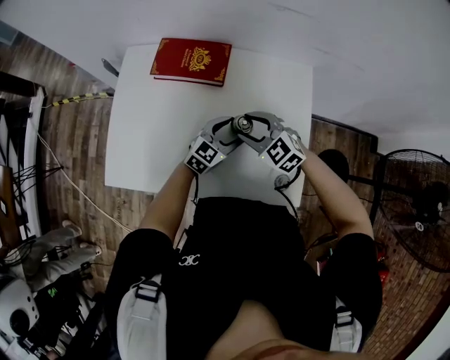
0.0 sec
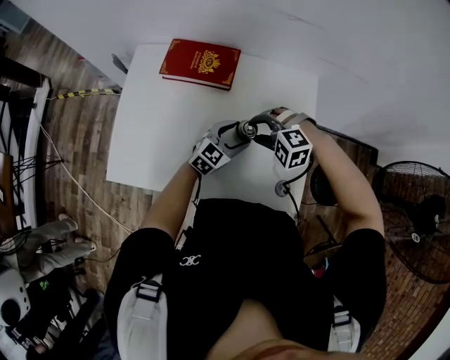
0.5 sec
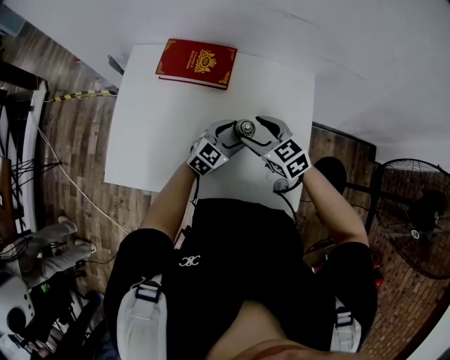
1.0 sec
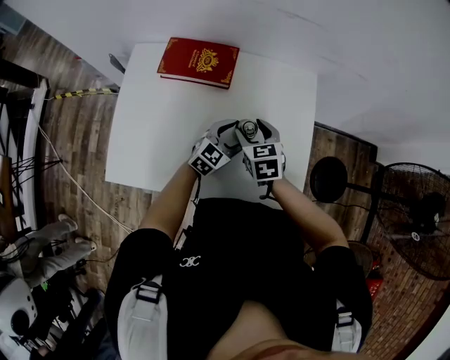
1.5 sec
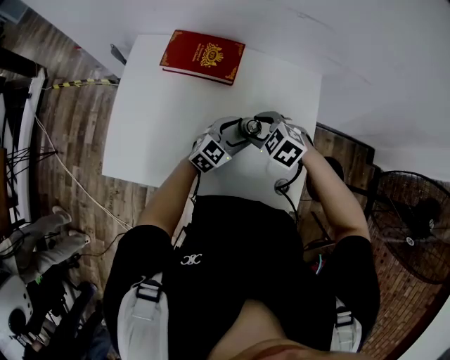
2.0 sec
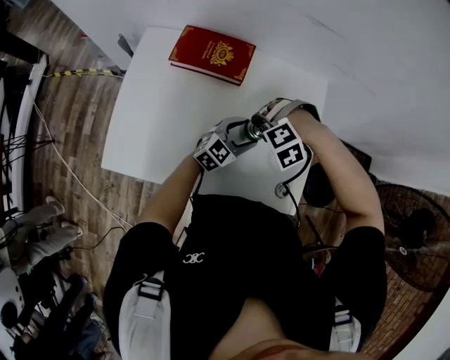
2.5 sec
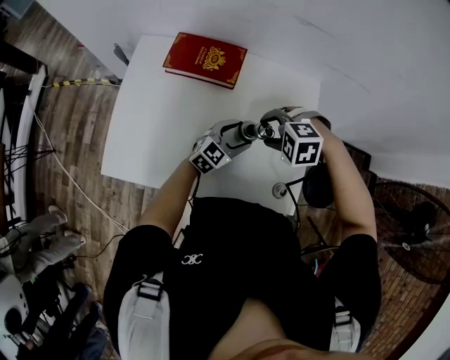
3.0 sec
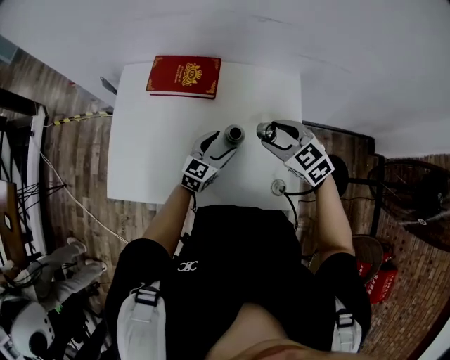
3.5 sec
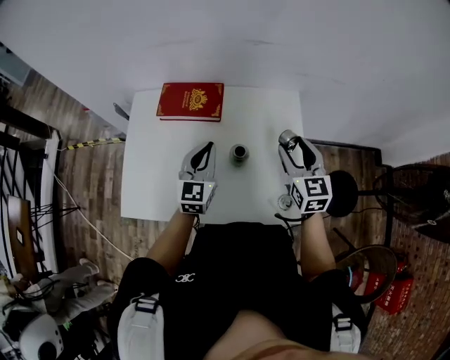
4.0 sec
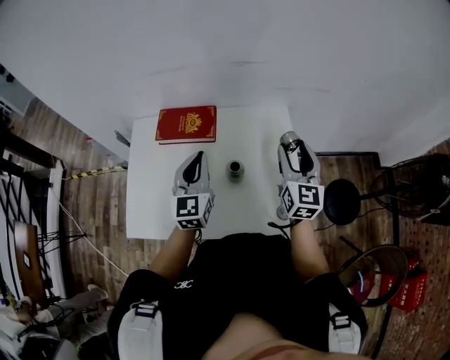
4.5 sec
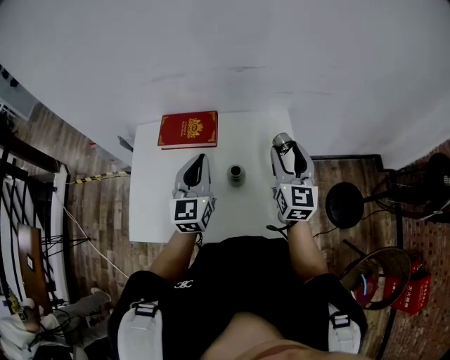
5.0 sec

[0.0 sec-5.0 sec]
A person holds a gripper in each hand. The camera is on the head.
0.0 sec to 2.5 sec: The right gripper tilts its fingers some 50 degrees downward.
2.5 sec to 5.0 sec: The grippers both shift upward by about 25 cm. The left gripper swivels roughly 40 degrees, and closes up; the right gripper tilts its fingers some 80 degrees upward.

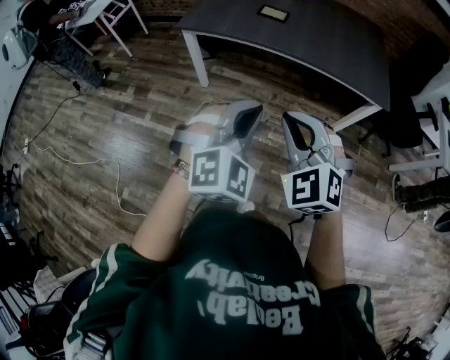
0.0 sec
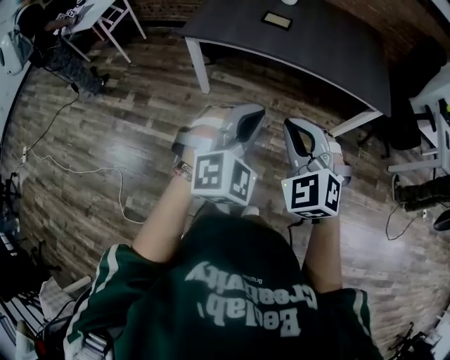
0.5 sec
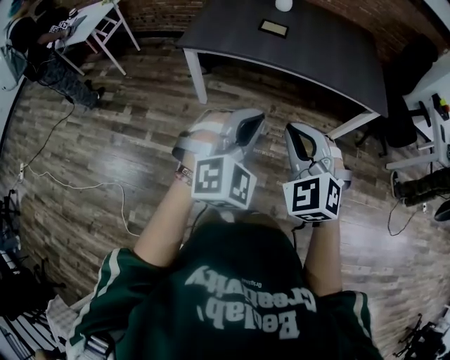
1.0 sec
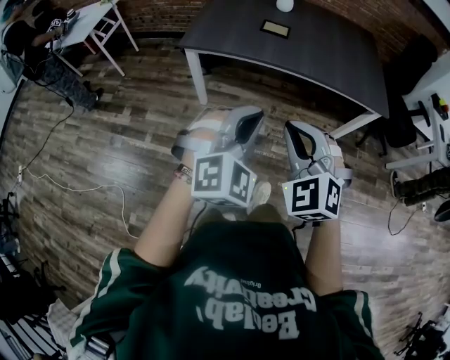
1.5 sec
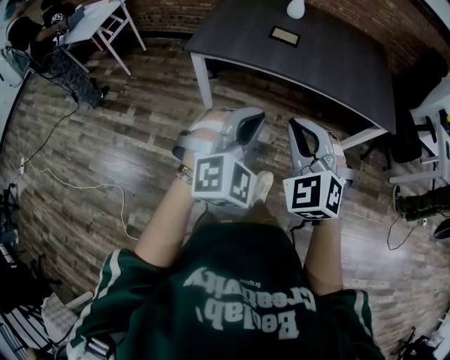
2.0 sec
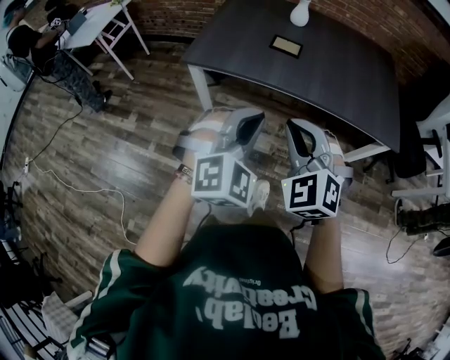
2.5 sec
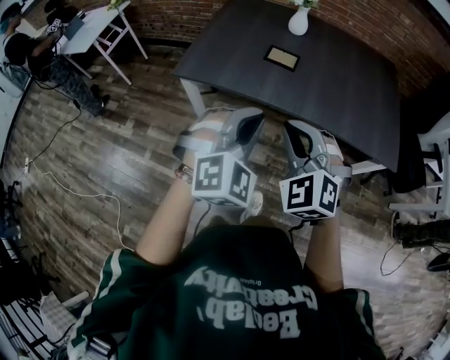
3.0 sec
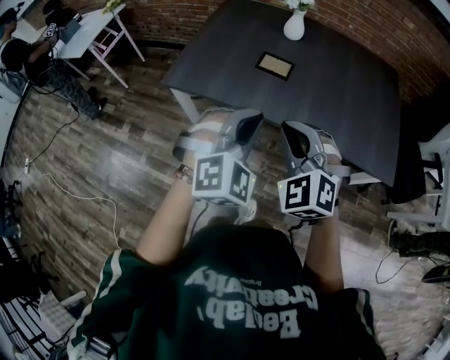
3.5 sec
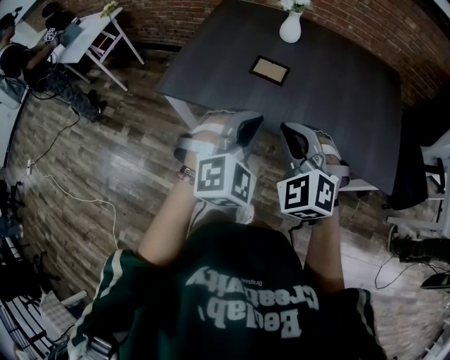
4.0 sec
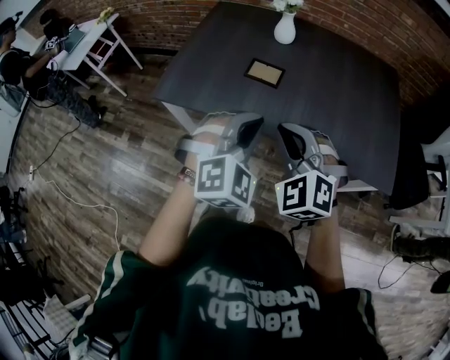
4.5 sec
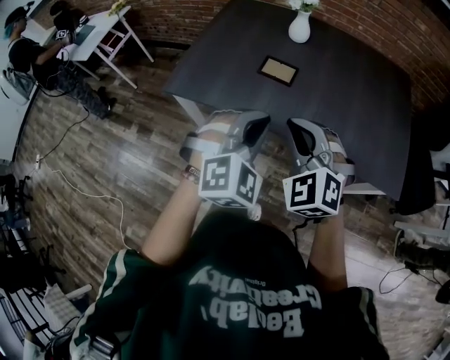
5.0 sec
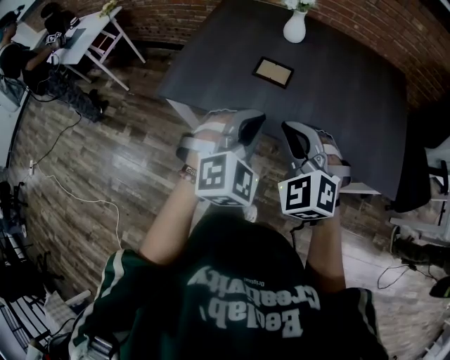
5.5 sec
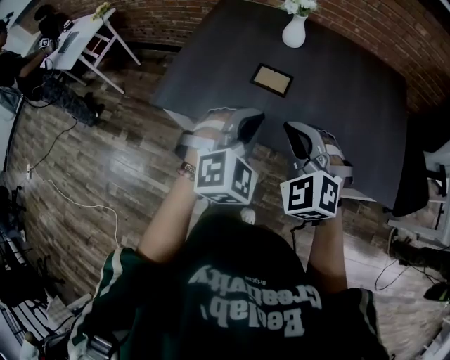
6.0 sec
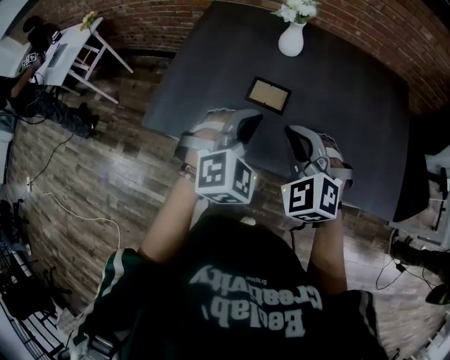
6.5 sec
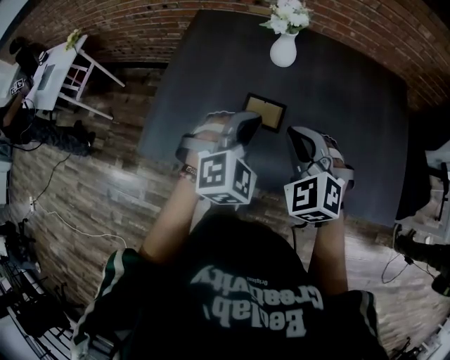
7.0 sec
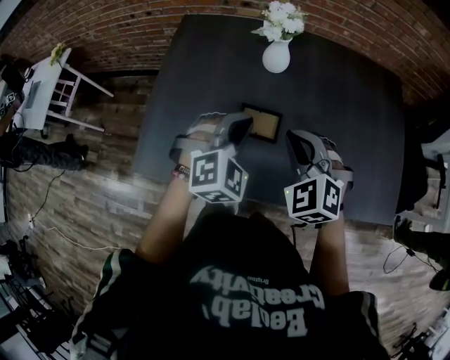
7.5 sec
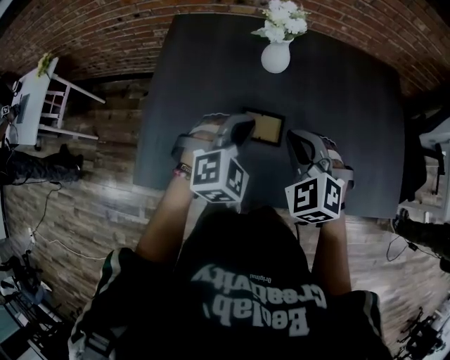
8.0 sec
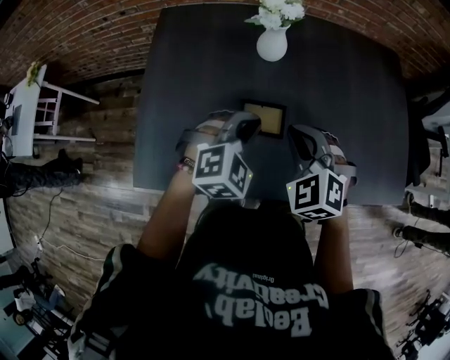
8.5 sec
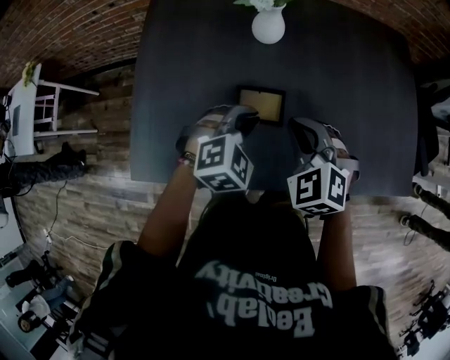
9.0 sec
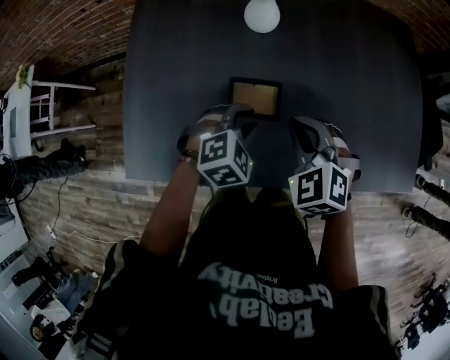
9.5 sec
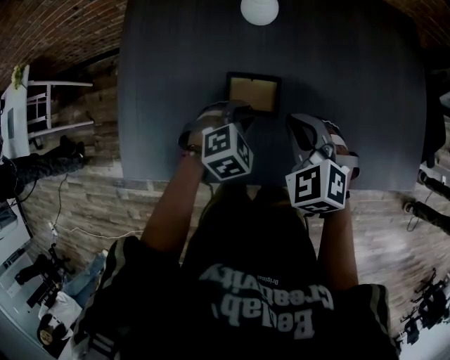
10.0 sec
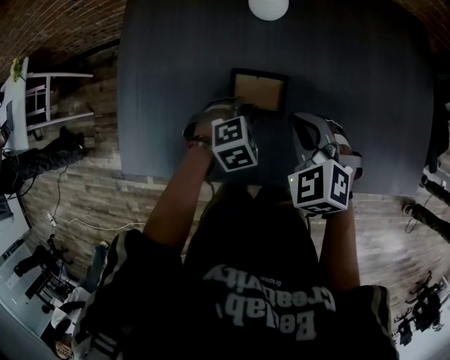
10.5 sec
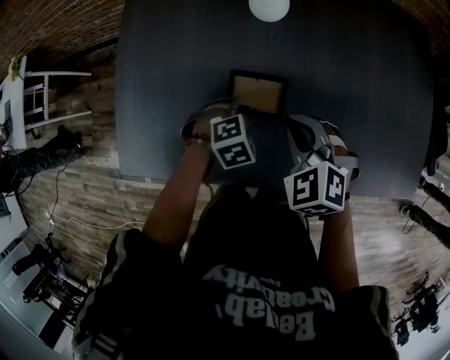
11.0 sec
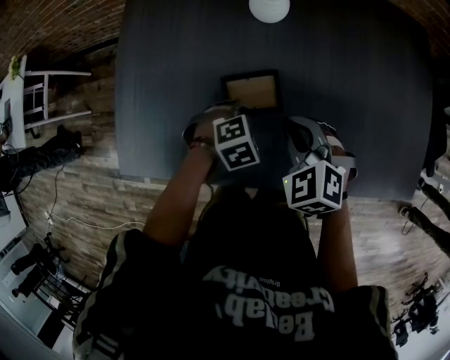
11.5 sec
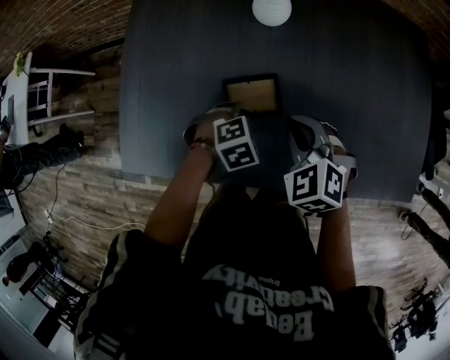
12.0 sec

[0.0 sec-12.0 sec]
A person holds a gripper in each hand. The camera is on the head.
0.0 sec to 2.0 sec: Both grippers travel together to the left and forward, roughly 15 cm.
2.0 sec to 4.0 sec: The two grippers go some 35 cm forward and to the right.
4.0 sec to 6.0 sec: The grippers both shift forward by roughly 10 cm.
6.0 sec to 8.0 sec: The two grippers go some 30 cm forward.
8.0 sec to 10.0 sec: The right gripper is displaced downward by some 10 cm; the left gripper heads downward, covering approximately 20 cm, turns by about 30 degrees, and opens its fingers.

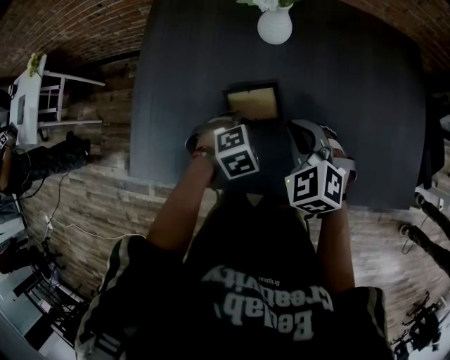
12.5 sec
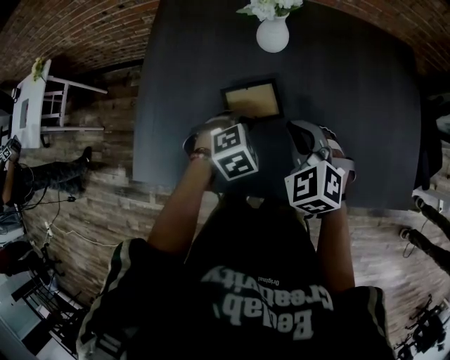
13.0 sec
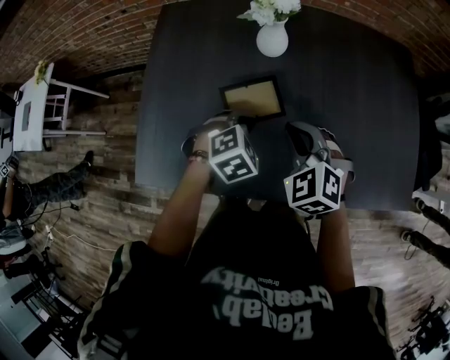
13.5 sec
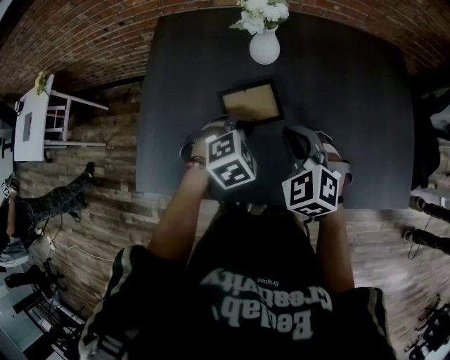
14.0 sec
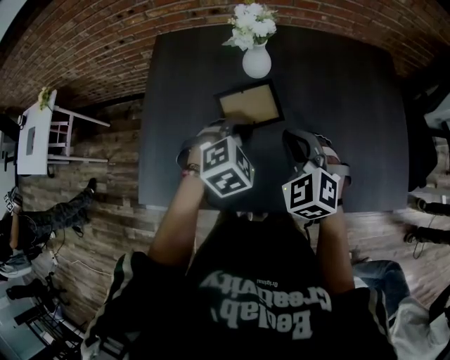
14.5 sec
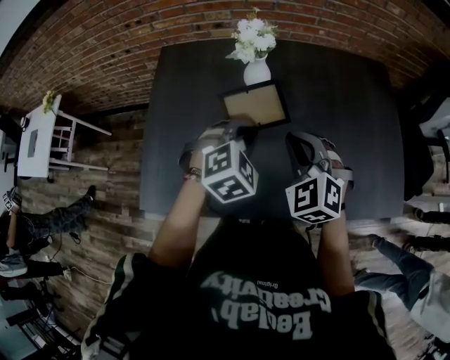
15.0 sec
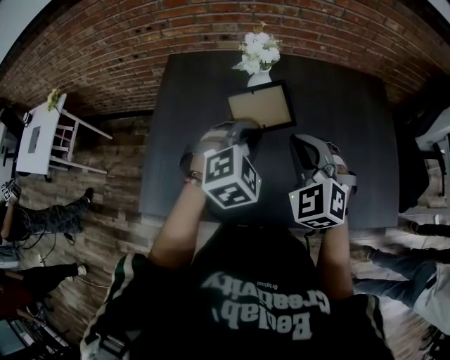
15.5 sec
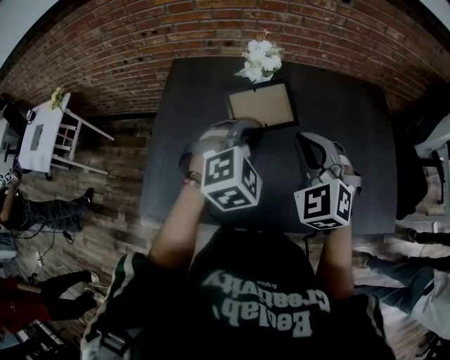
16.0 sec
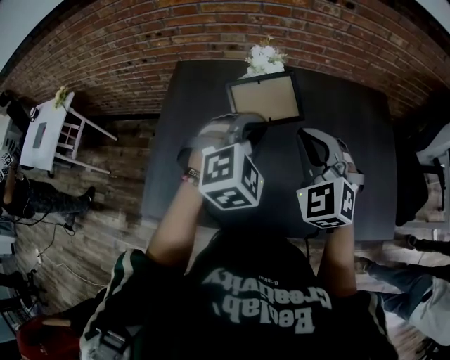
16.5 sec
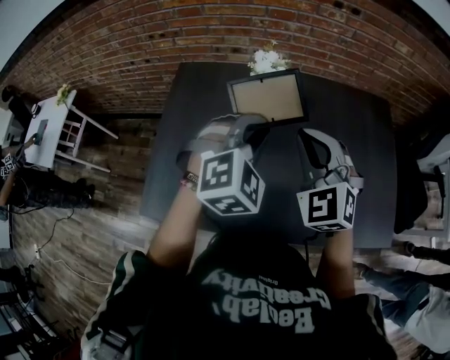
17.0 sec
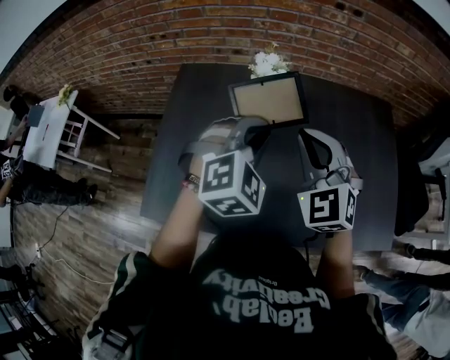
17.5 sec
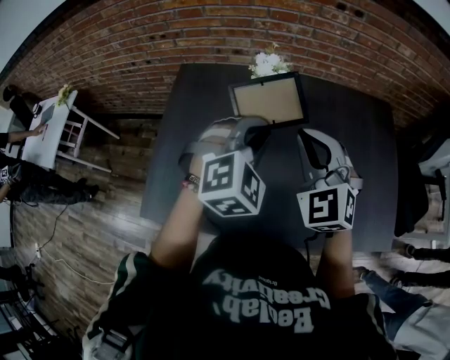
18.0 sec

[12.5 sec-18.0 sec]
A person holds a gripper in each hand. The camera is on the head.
12.5 sec to 14.5 sec: The left gripper moves upward, some 15 cm. Meanwhile the right gripper heads upward, covering about 10 cm.
14.5 sec to 16.0 sec: Both grippers move upward, roughly 15 cm.
16.0 sec to 18.0 sec: The right gripper moves roughly 5 cm. The left gripper moves approximately 5 cm.

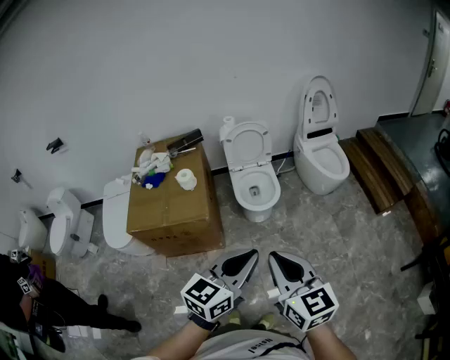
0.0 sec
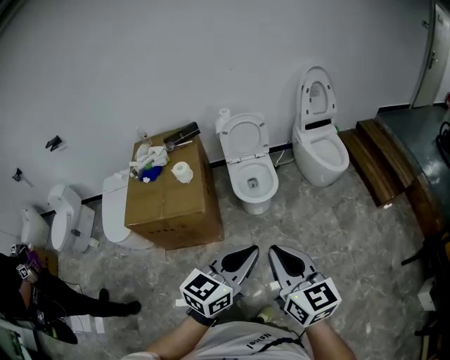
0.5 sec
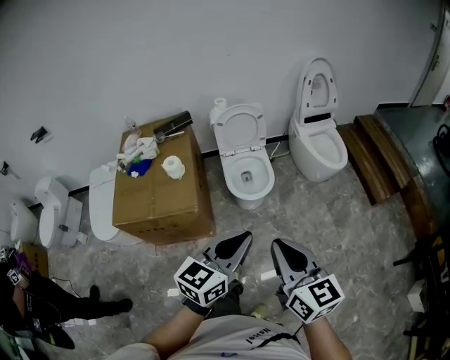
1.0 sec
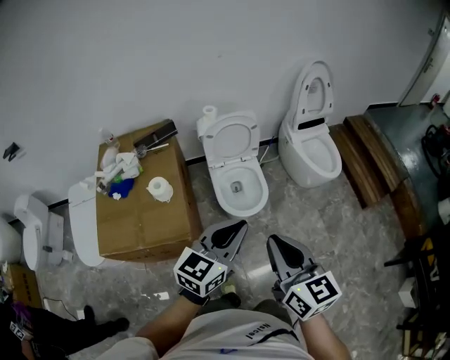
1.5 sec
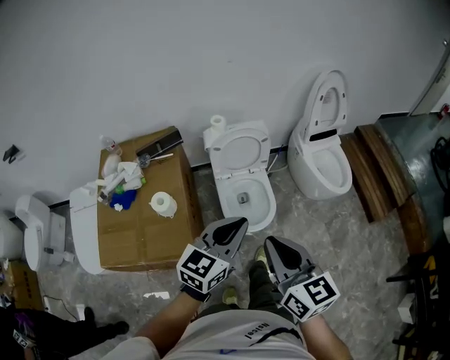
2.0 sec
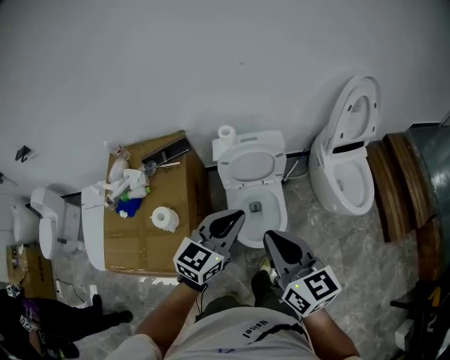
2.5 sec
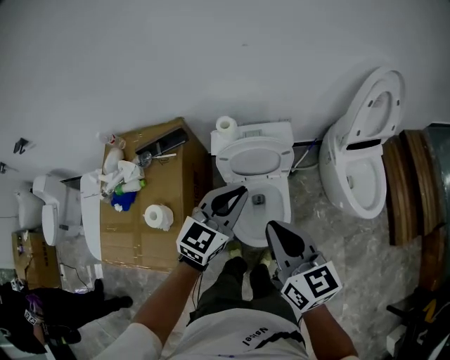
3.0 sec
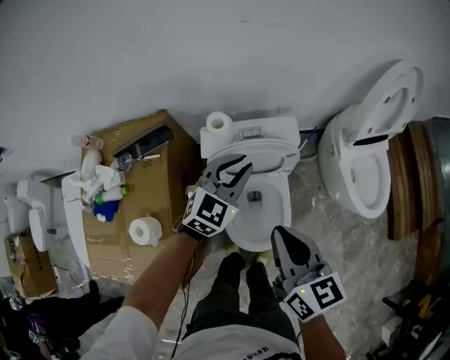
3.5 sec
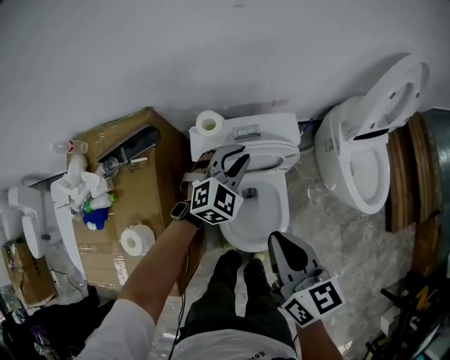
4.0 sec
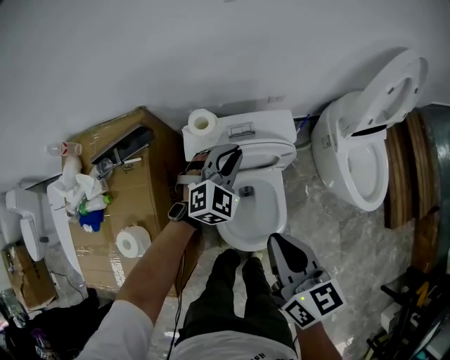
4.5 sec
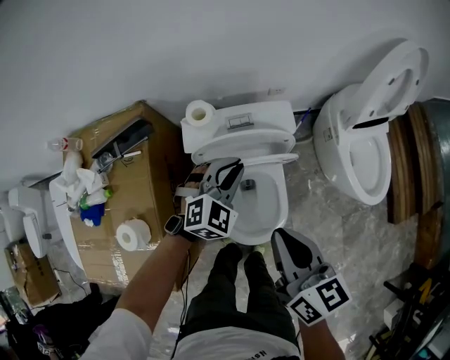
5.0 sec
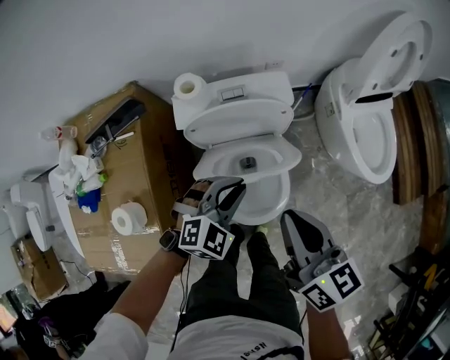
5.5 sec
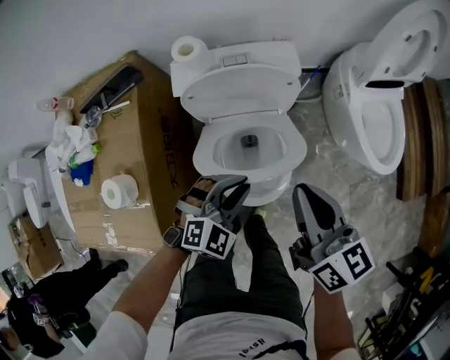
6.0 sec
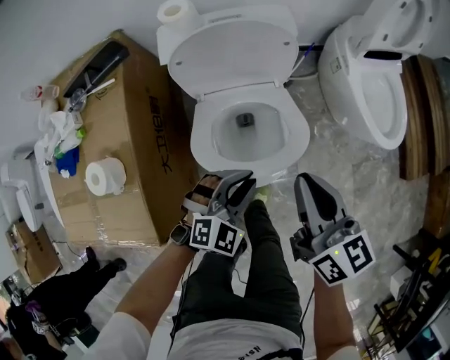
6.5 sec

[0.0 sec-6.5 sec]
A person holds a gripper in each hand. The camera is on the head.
0.0 sec to 2.0 sec: Both grippers move forward, some 40 cm.
2.0 sec to 4.5 sec: The two grippers go some 50 cm forward and downward. The left gripper rotates some 50 degrees.
4.5 sec to 6.5 sec: The right gripper goes some 15 cm downward, backward and to the right, while the left gripper shifts about 30 cm backward.
